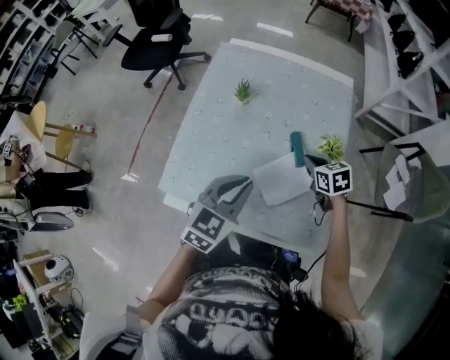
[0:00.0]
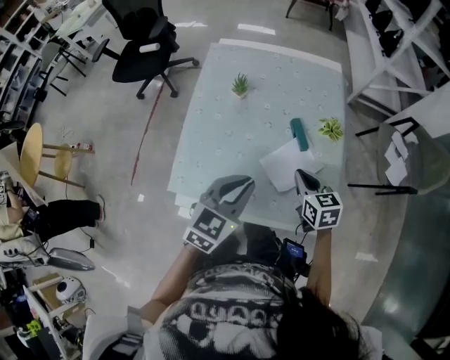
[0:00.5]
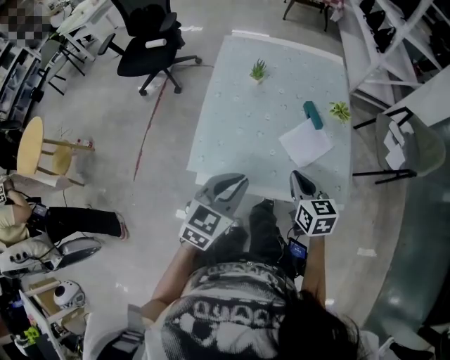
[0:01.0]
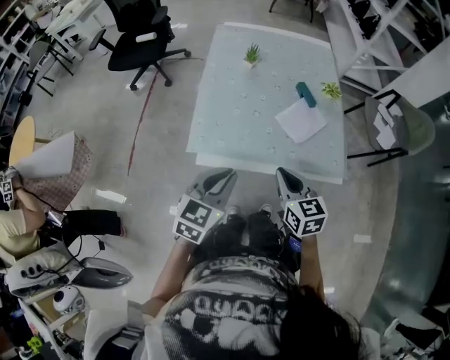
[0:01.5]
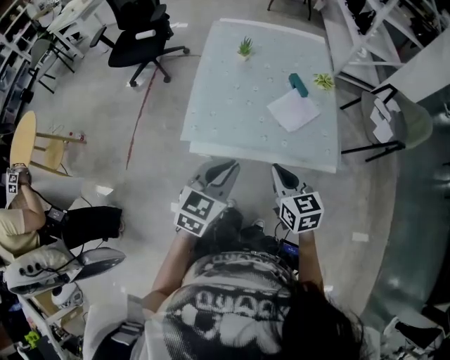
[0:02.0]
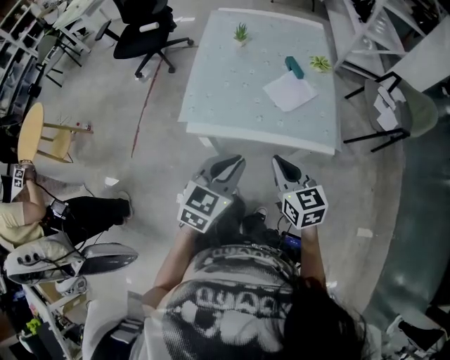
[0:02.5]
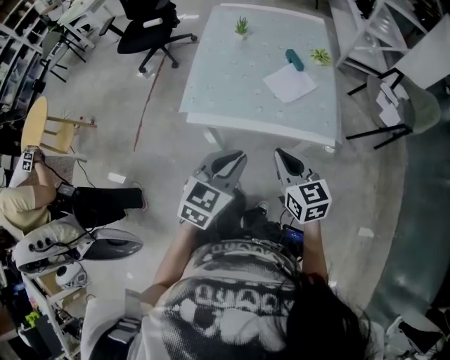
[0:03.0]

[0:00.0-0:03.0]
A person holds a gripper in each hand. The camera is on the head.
0:00.0 to 0:01.5: The two grippers go approximately 30 cm backward and to the left. The right gripper swivels approximately 30 degrees.
0:01.5 to 0:03.0: The right gripper is displaced backward and to the right by about 10 cm. The left gripper moves to the right and backward, approximately 15 cm.

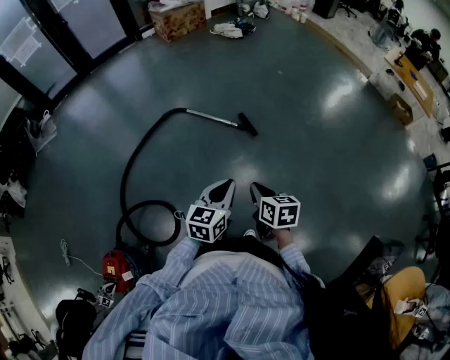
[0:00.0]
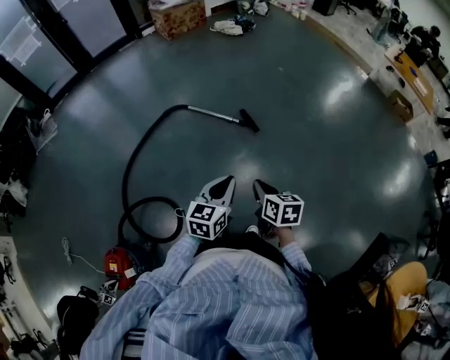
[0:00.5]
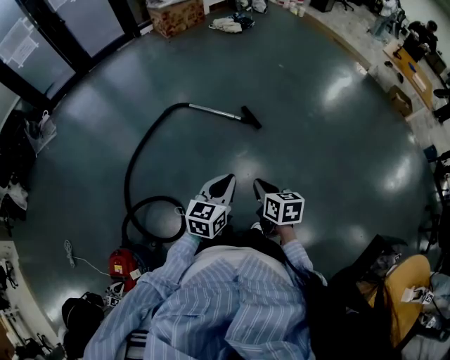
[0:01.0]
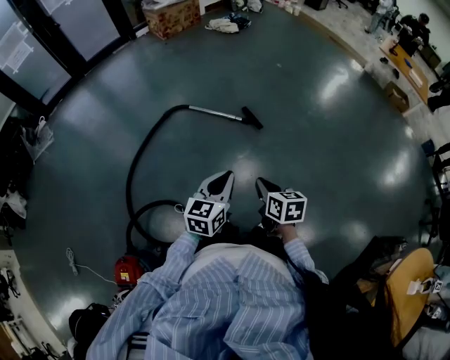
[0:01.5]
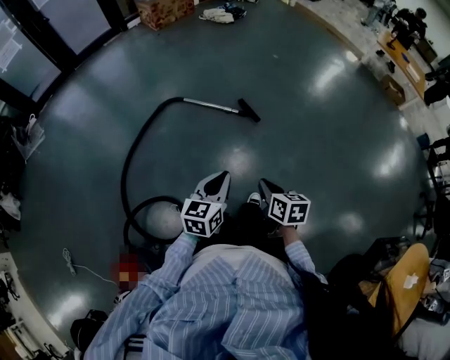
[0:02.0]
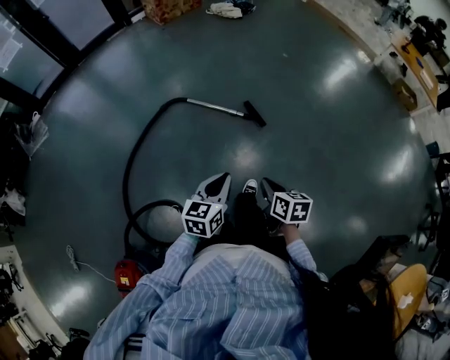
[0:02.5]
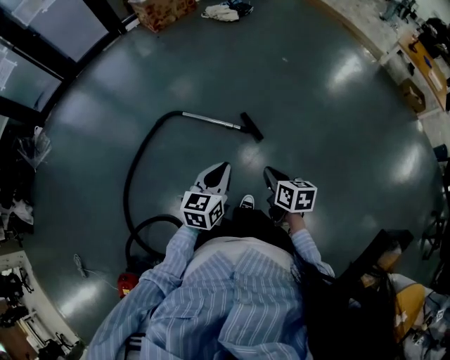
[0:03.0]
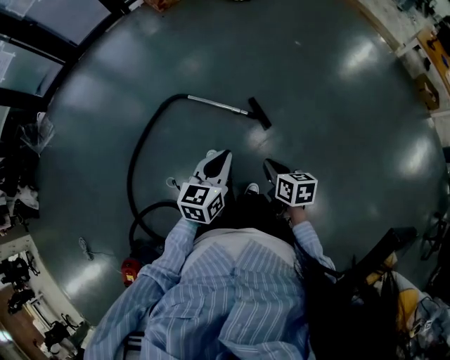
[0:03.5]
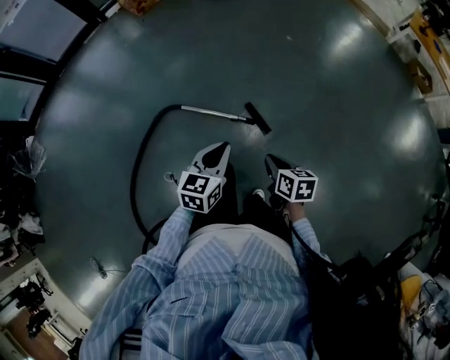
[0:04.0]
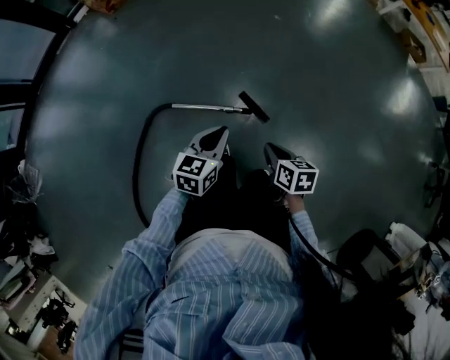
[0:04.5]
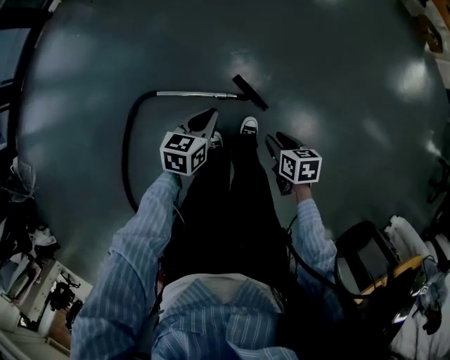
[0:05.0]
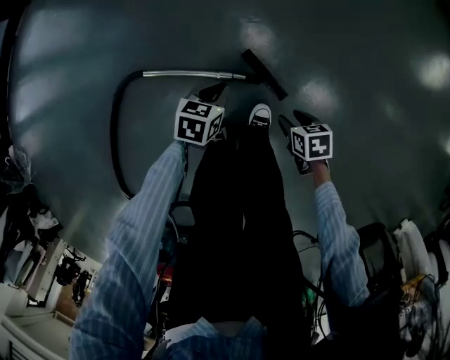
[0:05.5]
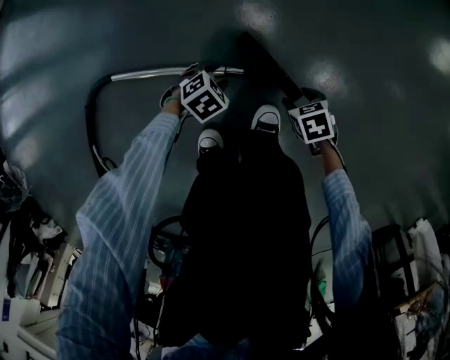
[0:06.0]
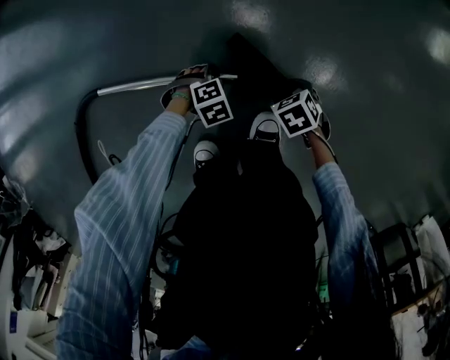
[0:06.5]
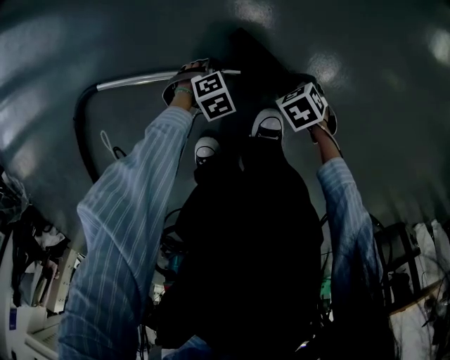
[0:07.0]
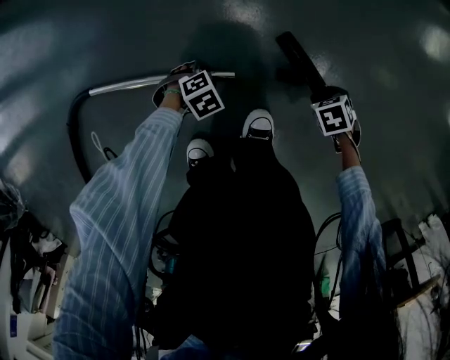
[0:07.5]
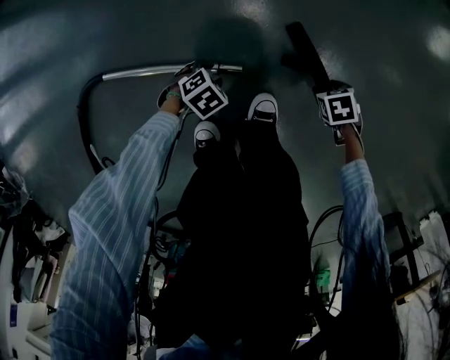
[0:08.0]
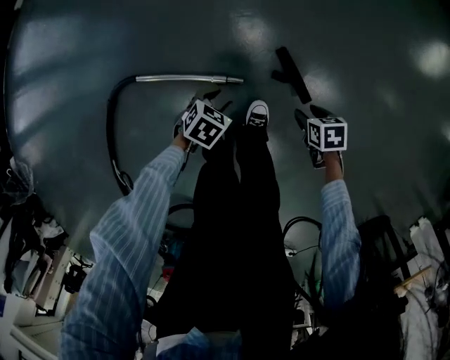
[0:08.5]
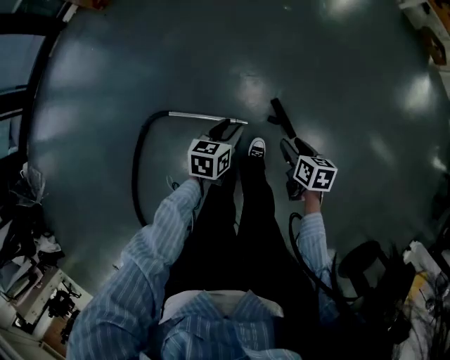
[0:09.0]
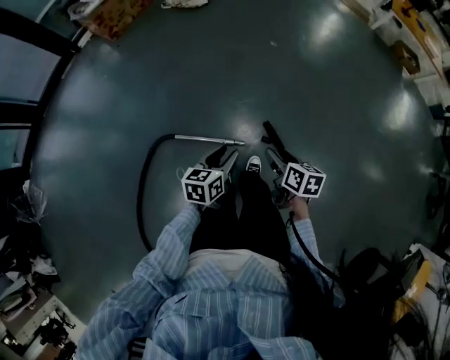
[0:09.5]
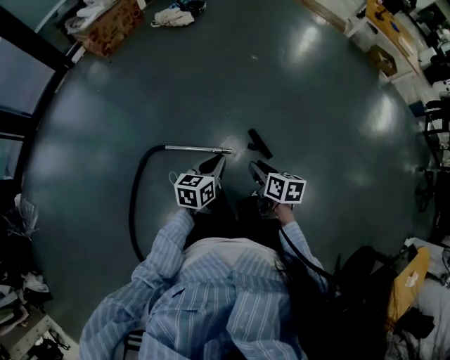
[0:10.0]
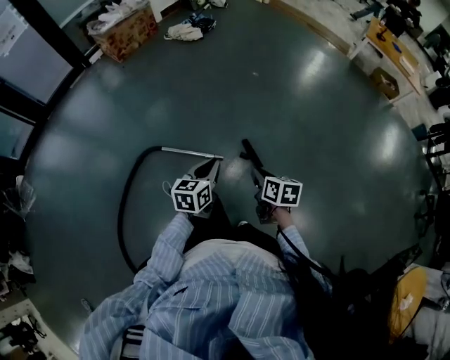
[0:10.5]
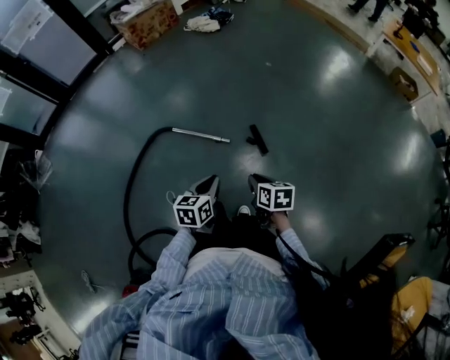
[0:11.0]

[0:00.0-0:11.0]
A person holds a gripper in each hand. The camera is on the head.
0:00.0 to 0:02.0: The right gripper heads to the left, covering some 10 cm, while the left gripper shifts about 10 cm to the left.
0:02.0 to 0:03.5: The two grippers go about 30 cm forward.
0:03.5 to 0:05.5: The two grippers go roughly 60 cm downward and forward. The right gripper swivels roughly 30 degrees, and opens up. The left gripper rotates some 40 degrees.
0:05.5 to 0:07.5: The two grippers go some 30 cm downward. The left gripper rotates around the line of its fingers by roughly 50 degrees, clockwise from behind, and opens up, while the right gripper swivels about 30 degrees.
0:07.5 to 0:09.0: Both grippers travel together upward, approximately 60 cm. The right gripper angles its fingers upward, by about 40 degrees. Meanwhile the left gripper points its fingers approximately 40 degrees further upward.
0:09.0 to 0:11.0: The grippers both shift backward and upward by some 40 cm. The left gripper closes up, while the right gripper closes.

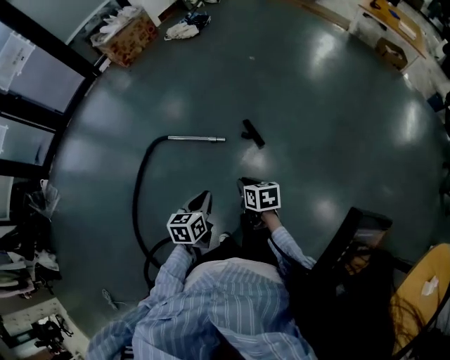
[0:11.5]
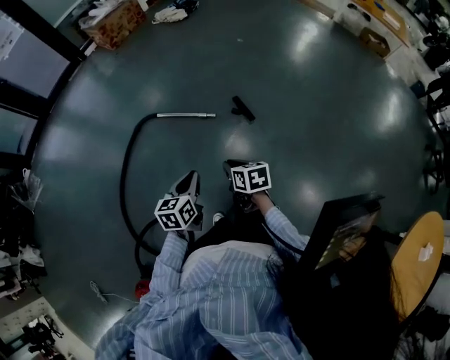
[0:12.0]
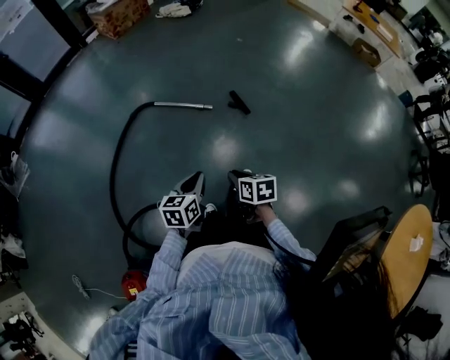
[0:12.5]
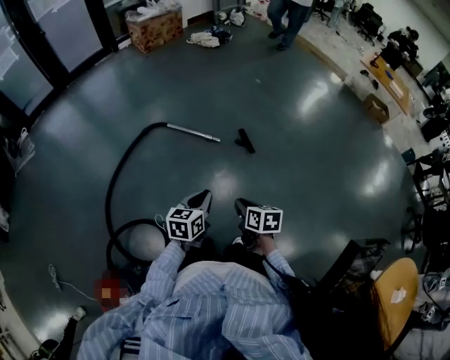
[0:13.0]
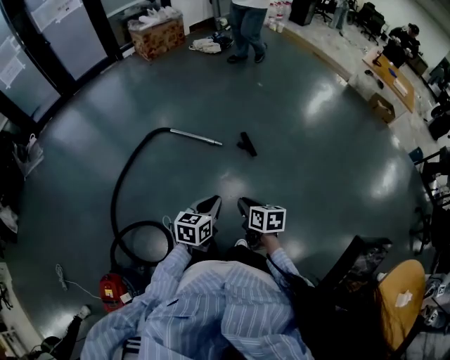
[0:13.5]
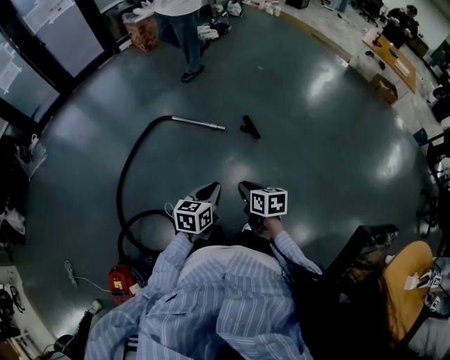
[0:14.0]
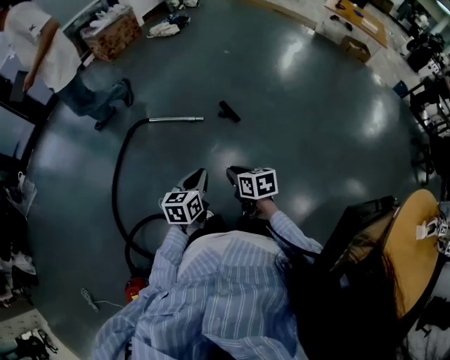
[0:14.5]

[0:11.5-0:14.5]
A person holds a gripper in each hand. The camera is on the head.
0:11.5 to 0:13.0: The right gripper moves backward, approximately 20 cm; the left gripper shifts roughly 20 cm backward and to the left.

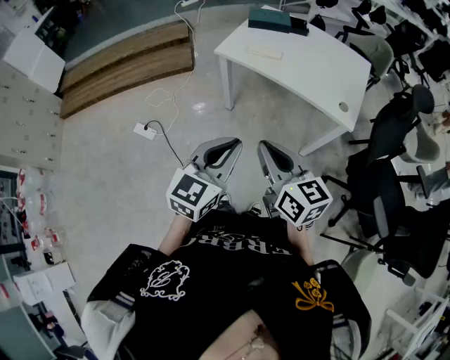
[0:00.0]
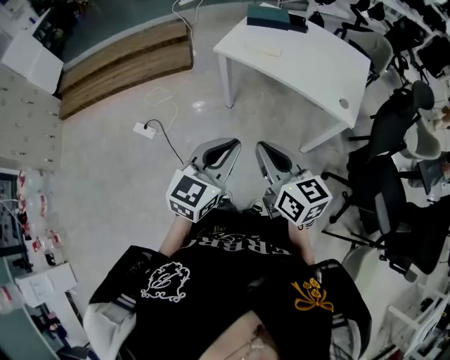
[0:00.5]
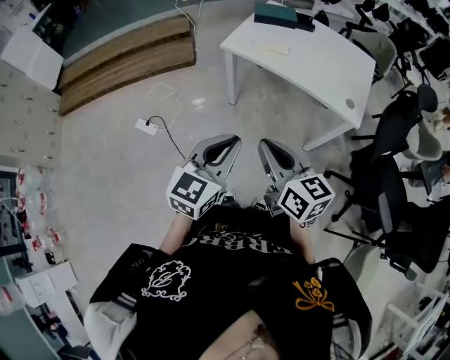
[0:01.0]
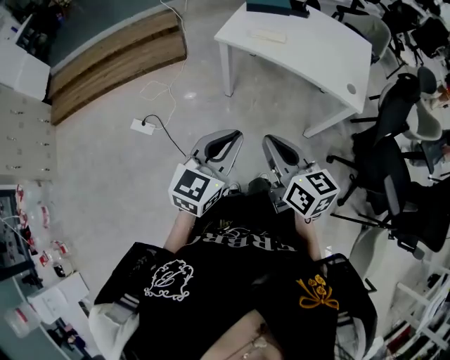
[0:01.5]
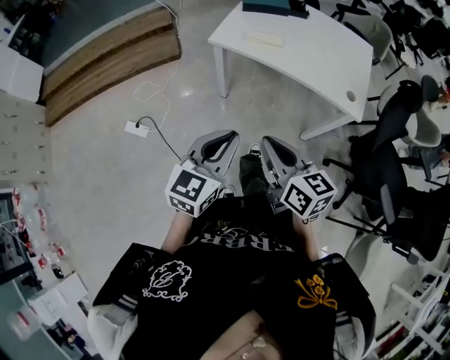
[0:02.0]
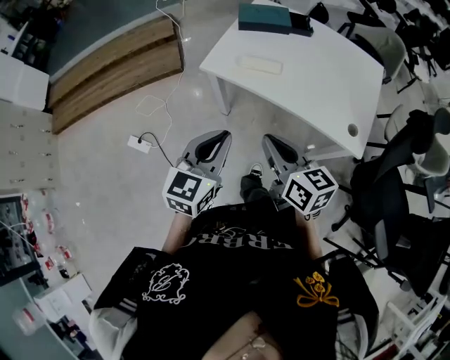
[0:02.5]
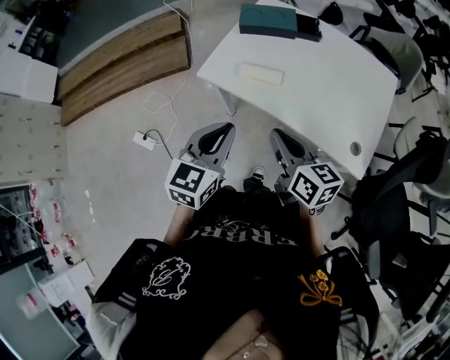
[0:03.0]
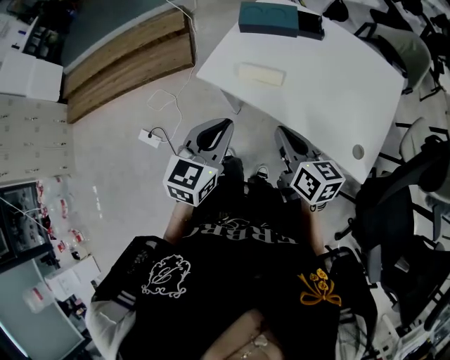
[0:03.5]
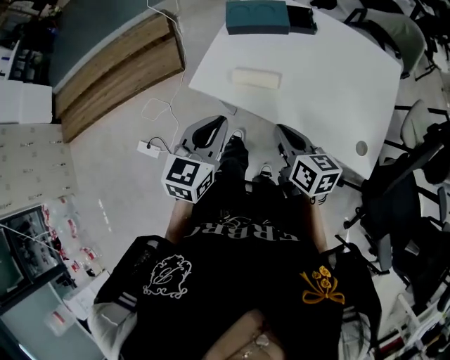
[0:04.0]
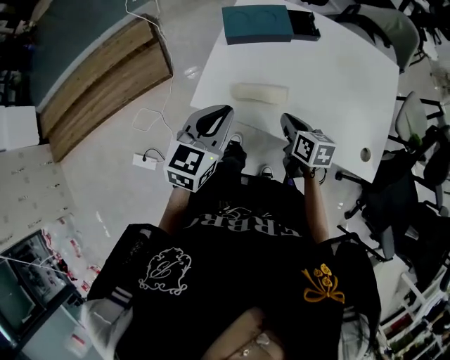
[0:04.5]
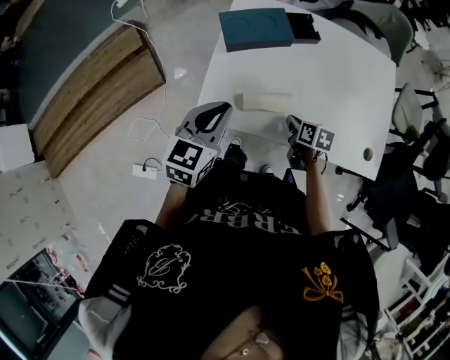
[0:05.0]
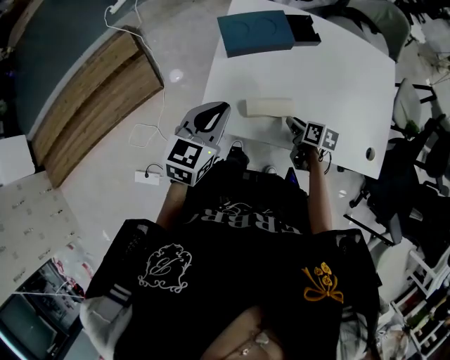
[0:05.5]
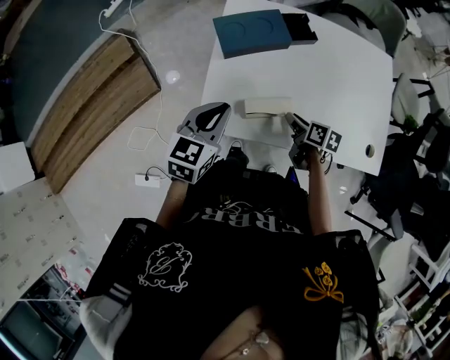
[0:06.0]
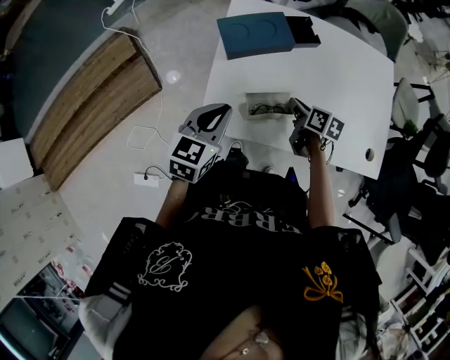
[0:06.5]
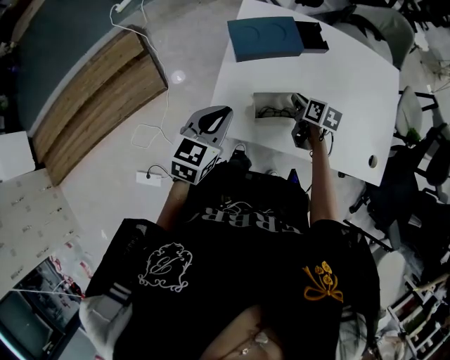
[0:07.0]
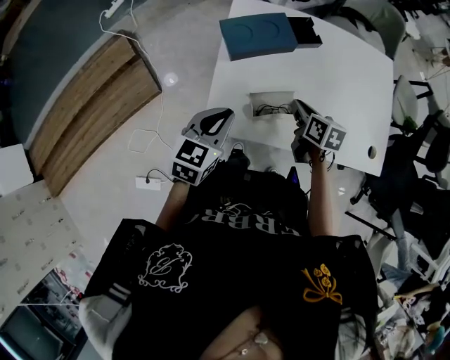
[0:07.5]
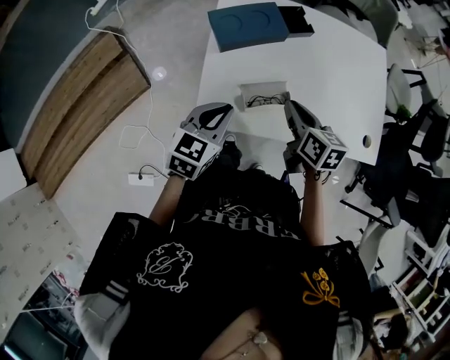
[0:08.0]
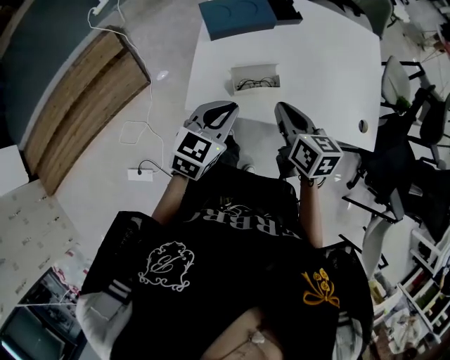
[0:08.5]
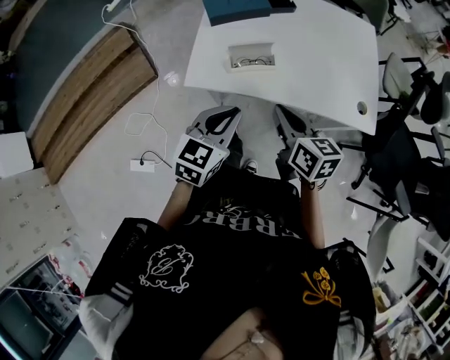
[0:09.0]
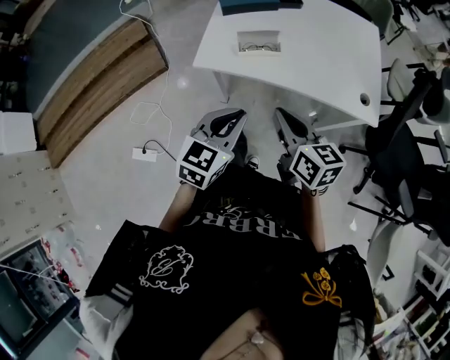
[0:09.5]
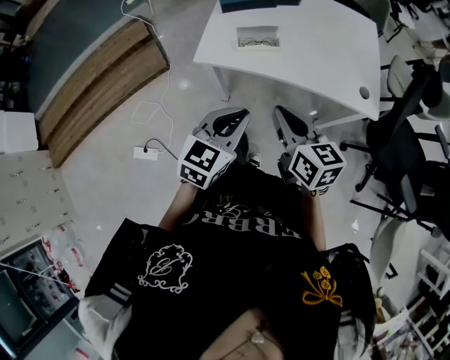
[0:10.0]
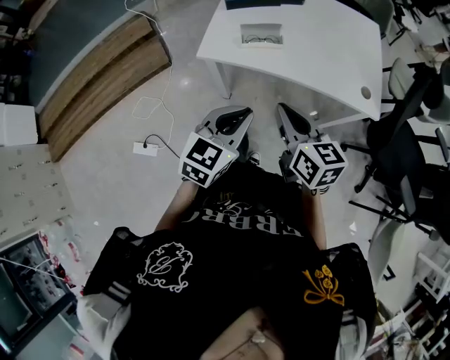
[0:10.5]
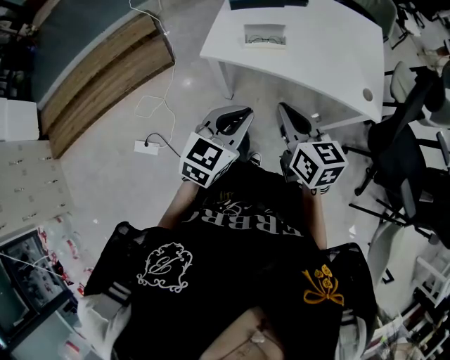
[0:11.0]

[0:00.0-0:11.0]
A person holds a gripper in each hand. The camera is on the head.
0:00.0 to 0:02.0: The left gripper moves forward and to the left, roughly 10 cm. The right gripper goes roughly 10 cm forward and downward.
0:02.0 to 0:03.5: The grippers both shift forward and to the right by some 35 cm.
0:03.5 to 0:05.5: The left gripper is displaced forward and to the left by roughly 30 cm, and rotates roughly 20 degrees. The right gripper travels forward and downward by approximately 30 cm, points its fingers some 30 degrees further downward, and opens up.
0:05.5 to 0:07.5: The right gripper goes some 10 cm upward and forward.
0:07.5 to 0:09.0: The left gripper goes about 25 cm backward and to the right. The right gripper goes roughly 25 cm backward and upward.
0:09.0 to 0:11.0: Both grippers travel together backward, roughly 15 cm.
